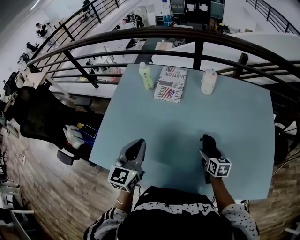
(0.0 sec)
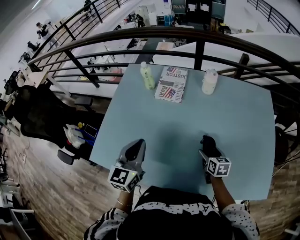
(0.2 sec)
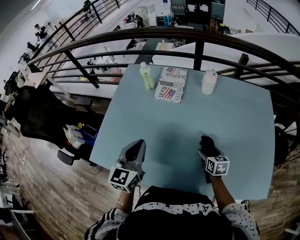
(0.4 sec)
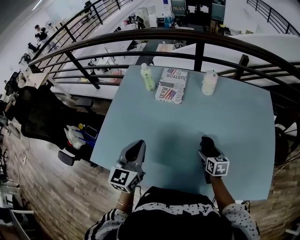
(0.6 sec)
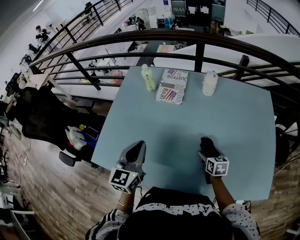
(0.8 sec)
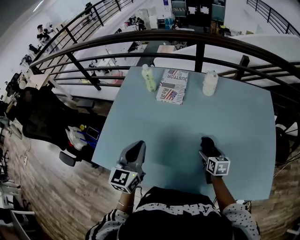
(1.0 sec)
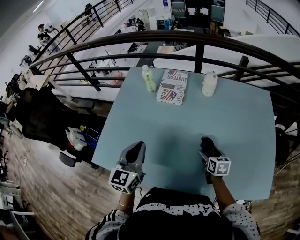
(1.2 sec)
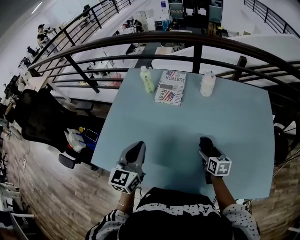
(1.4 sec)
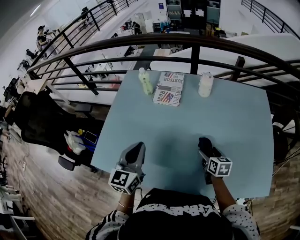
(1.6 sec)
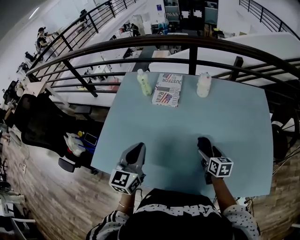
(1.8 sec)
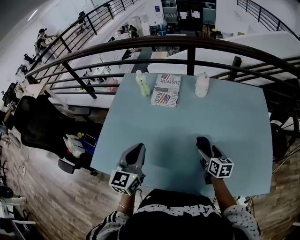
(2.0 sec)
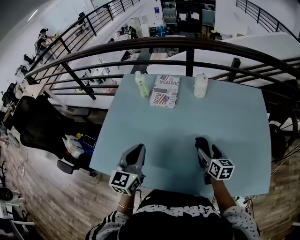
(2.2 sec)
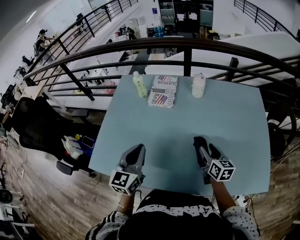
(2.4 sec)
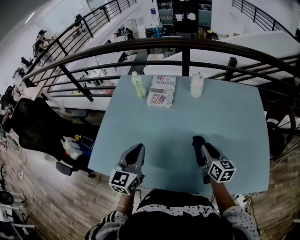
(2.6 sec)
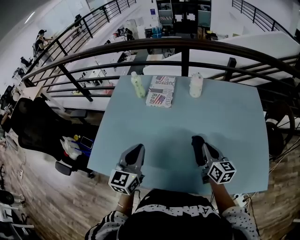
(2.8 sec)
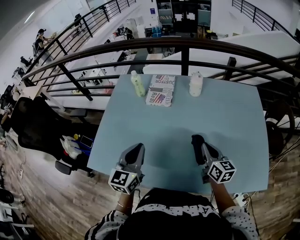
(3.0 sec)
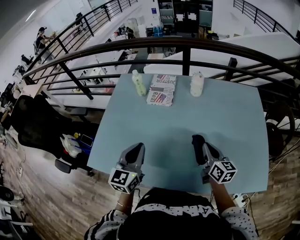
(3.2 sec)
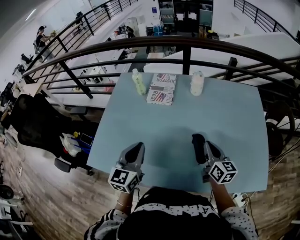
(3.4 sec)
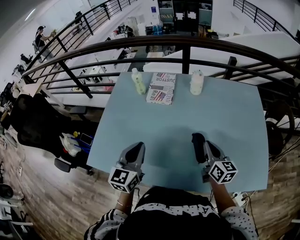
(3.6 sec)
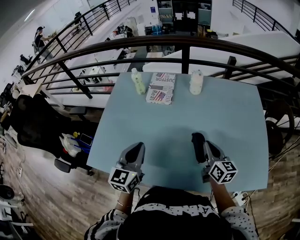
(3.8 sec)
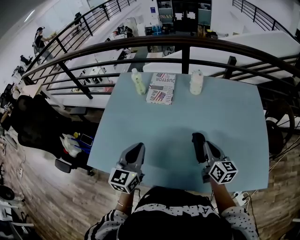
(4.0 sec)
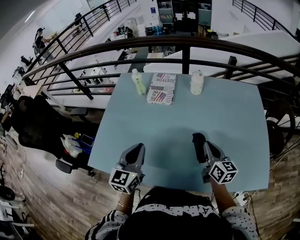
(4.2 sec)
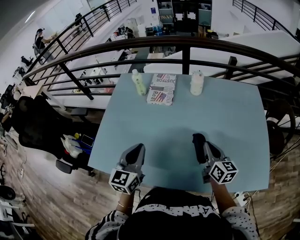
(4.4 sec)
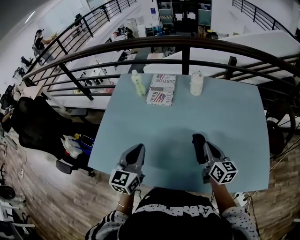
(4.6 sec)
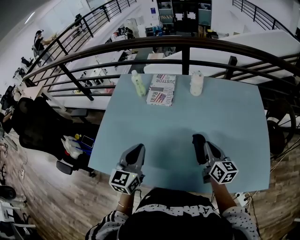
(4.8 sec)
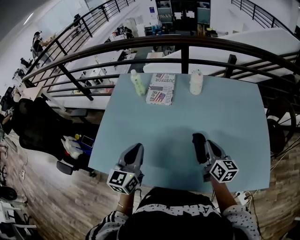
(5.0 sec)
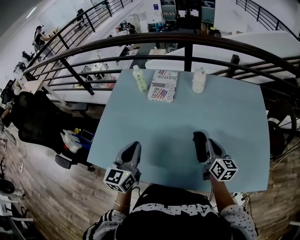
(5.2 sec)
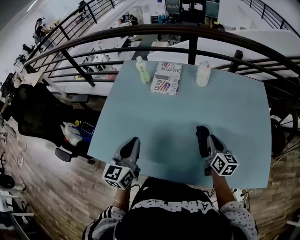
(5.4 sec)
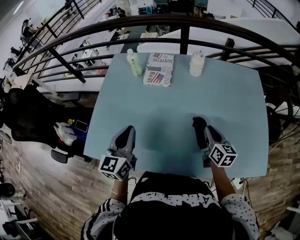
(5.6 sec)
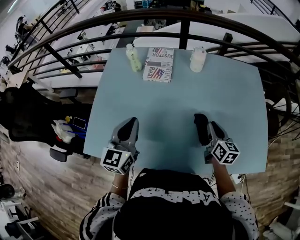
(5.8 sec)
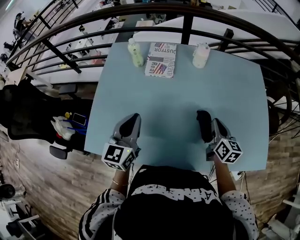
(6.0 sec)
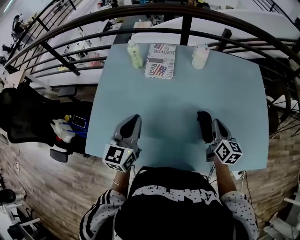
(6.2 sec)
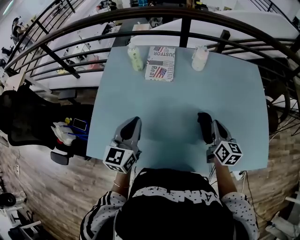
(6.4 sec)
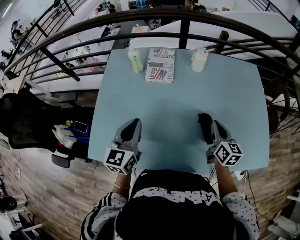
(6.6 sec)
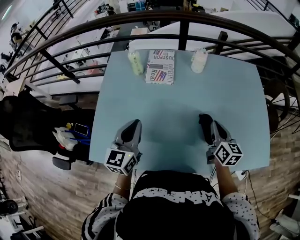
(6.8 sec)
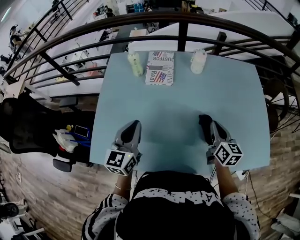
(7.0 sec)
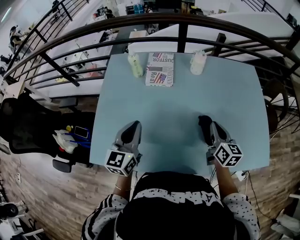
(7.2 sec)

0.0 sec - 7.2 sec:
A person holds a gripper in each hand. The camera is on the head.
0.0 sec - 1.4 sec: The grippers stay close to where they were, moving slightly.
1.4 sec - 2.8 sec: The right gripper shifts approximately 10 cm upward, swivels about 30 degrees, and closes up.
2.8 sec - 4.4 sec: Neither gripper changes place.
4.4 sec - 5.8 sec: The left gripper moves forward, roughly 5 cm.
5.8 sec - 7.2 sec: The right gripper ends up some 5 cm from where it was.

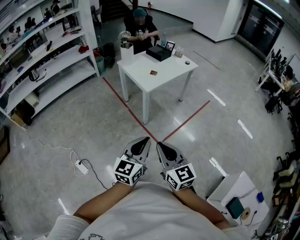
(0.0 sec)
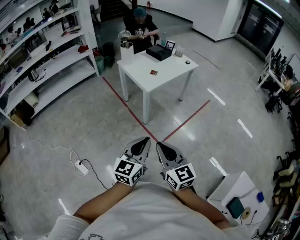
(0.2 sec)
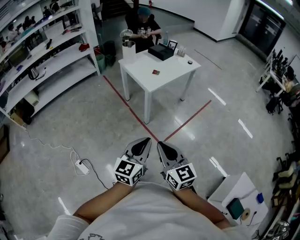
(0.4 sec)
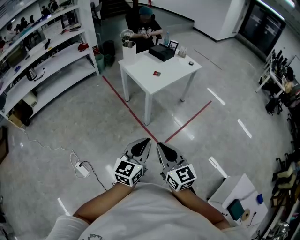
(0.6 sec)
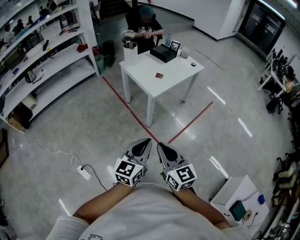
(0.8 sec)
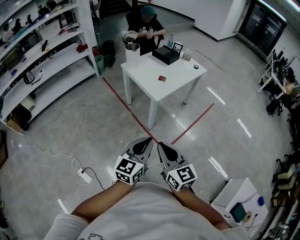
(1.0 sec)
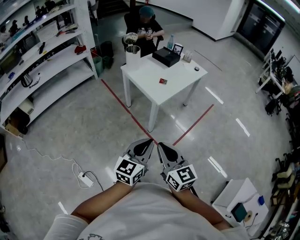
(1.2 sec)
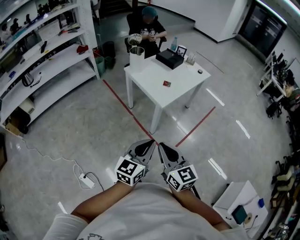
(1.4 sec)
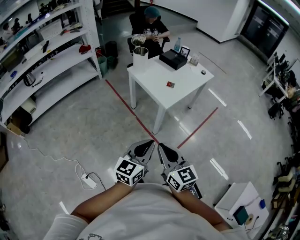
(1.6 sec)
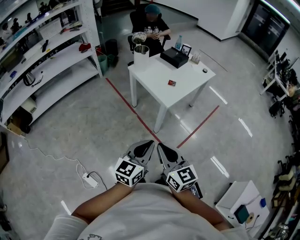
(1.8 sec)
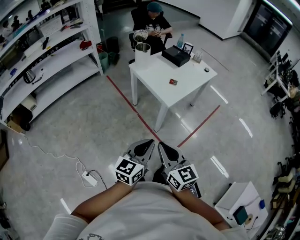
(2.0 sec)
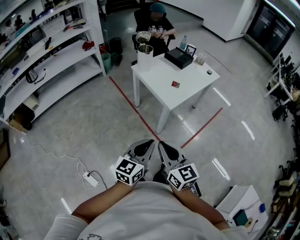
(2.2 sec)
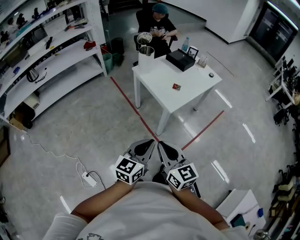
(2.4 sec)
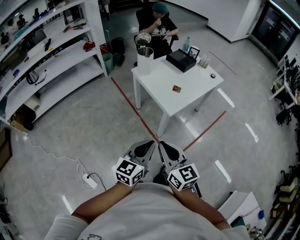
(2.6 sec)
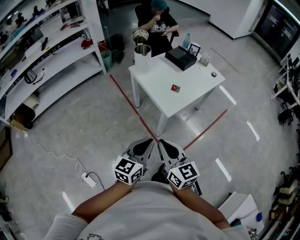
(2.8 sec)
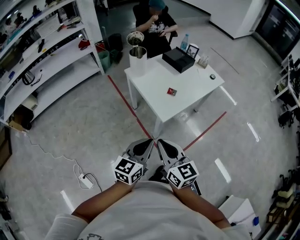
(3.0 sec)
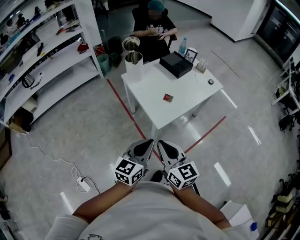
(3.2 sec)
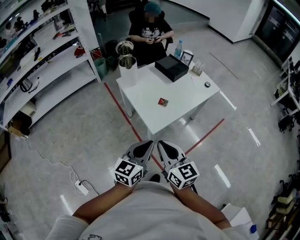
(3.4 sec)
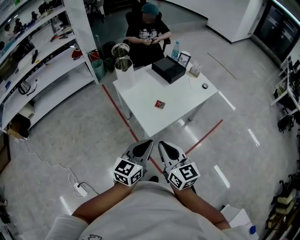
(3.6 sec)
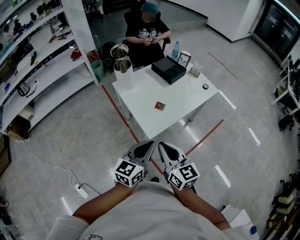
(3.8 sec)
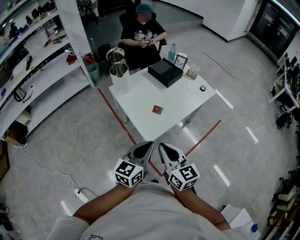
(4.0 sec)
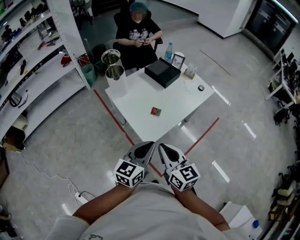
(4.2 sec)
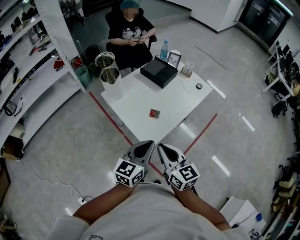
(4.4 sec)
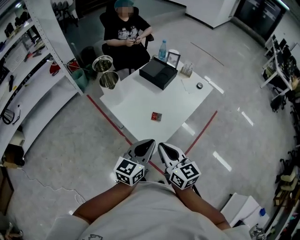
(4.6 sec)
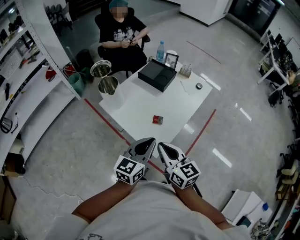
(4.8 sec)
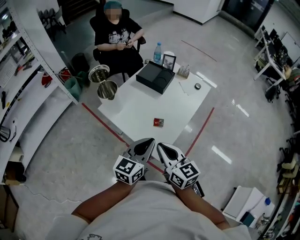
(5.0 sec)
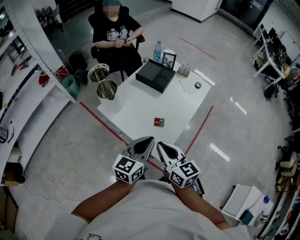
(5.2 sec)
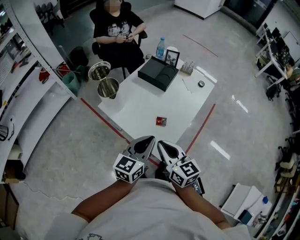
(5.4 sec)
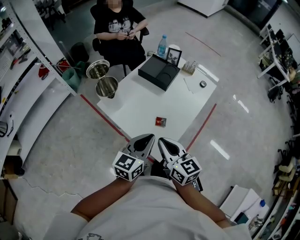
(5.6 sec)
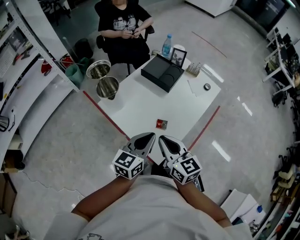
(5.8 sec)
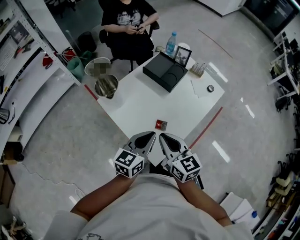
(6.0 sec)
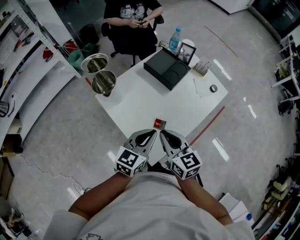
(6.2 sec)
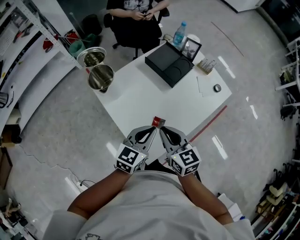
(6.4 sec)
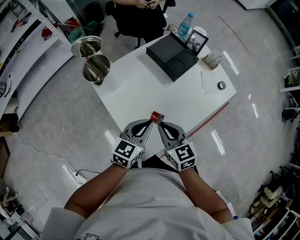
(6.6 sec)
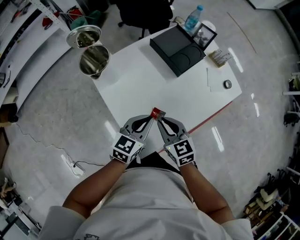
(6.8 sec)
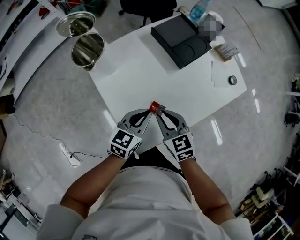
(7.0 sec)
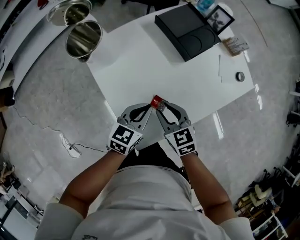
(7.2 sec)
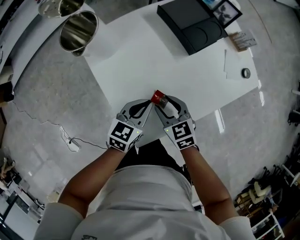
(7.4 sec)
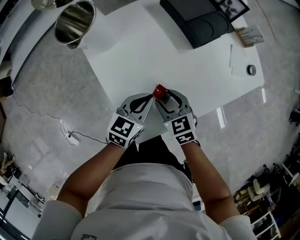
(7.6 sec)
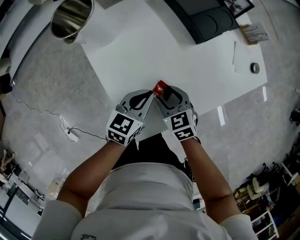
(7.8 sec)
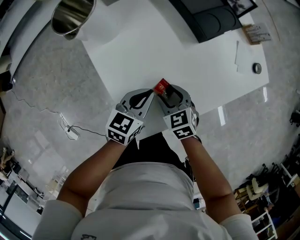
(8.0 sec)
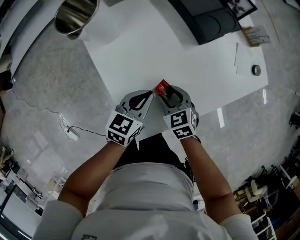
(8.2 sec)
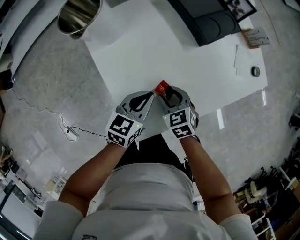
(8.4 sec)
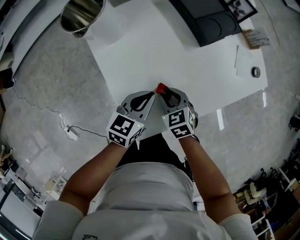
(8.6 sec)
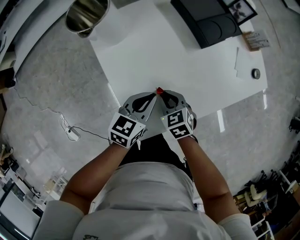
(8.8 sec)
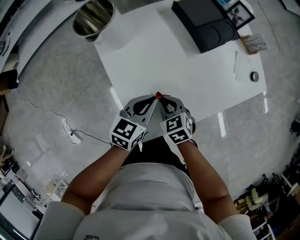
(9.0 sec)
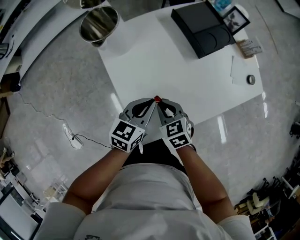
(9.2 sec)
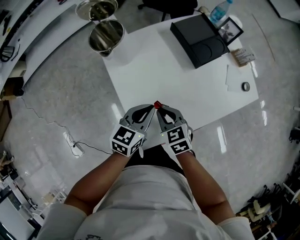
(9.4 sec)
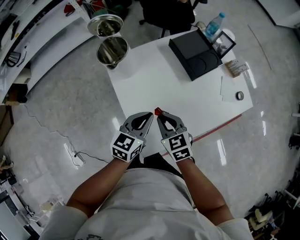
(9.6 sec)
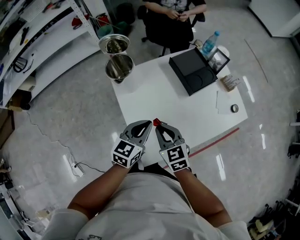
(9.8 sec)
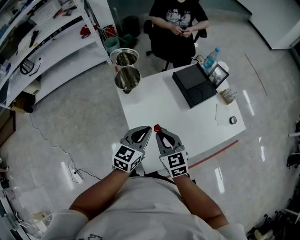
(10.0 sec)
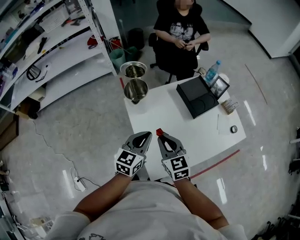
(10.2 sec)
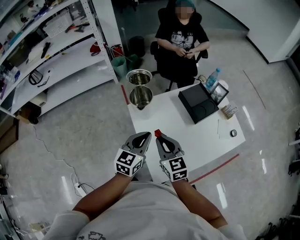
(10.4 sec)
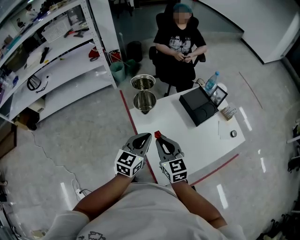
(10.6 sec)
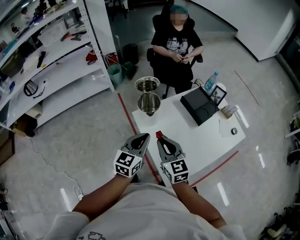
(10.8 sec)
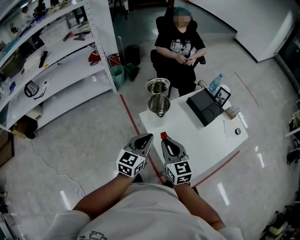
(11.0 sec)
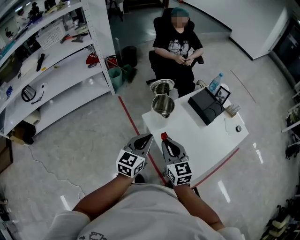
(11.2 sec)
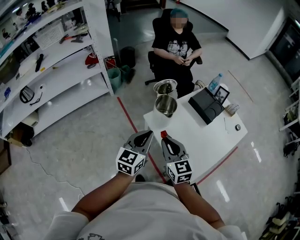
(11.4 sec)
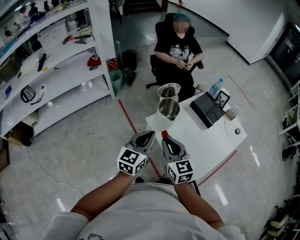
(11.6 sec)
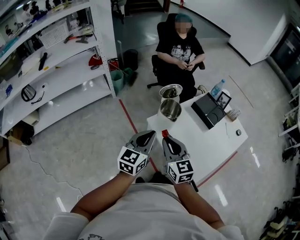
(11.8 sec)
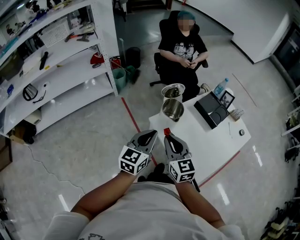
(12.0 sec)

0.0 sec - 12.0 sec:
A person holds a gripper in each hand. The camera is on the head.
0.0 sec - 1.6 sec: Both grippers move forward and to the left, about 25 cm.
1.6 sec - 3.0 sec: Both grippers travel together forward, about 20 cm.
3.0 sec - 4.4 sec: The grippers both shift forward and to the right by approximately 20 cm.
4.4 sec - 6.0 sec: Both grippers move forward, about 20 cm.
6.0 sec - 7.6 sec: The grippers both shift downward by roughly 25 cm. The right gripper swivels some 40 degrees, and opens up.
7.6 sec - 9.0 sec: The right gripper closes.
9.0 sec - 10.4 sec: The left gripper heads upward and to the left, covering approximately 20 cm, and swivels roughly 20 degrees. Meanwhile the right gripper moves upward, roughly 25 cm, and points its fingers approximately 30 degrees further upward.
10.4 sec - 12.0 sec: The grippers both shift to the left by approximately 20 cm.

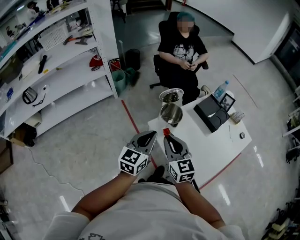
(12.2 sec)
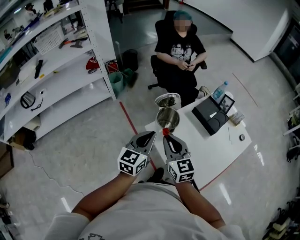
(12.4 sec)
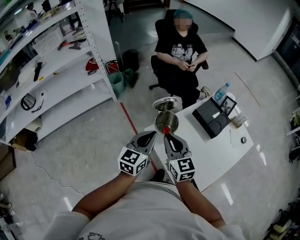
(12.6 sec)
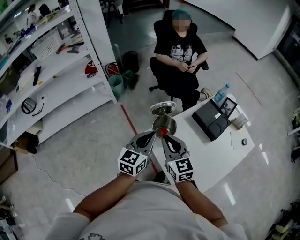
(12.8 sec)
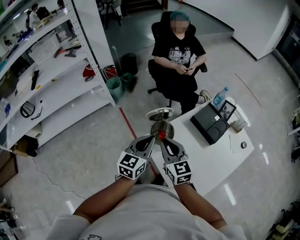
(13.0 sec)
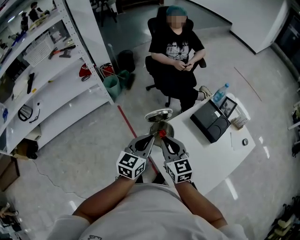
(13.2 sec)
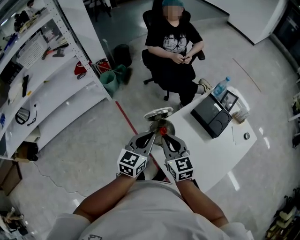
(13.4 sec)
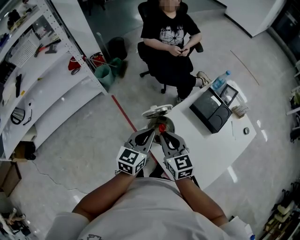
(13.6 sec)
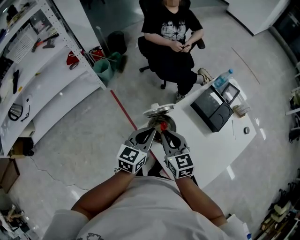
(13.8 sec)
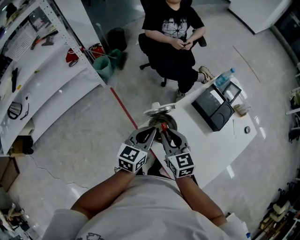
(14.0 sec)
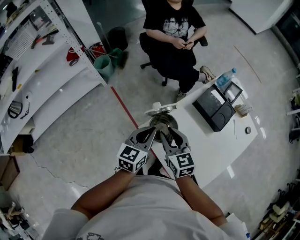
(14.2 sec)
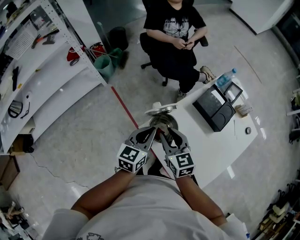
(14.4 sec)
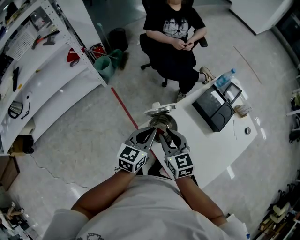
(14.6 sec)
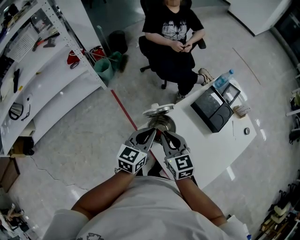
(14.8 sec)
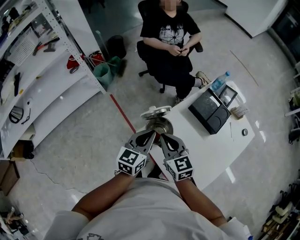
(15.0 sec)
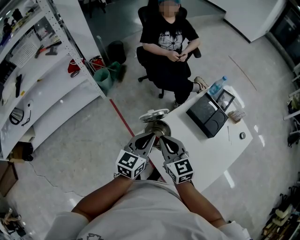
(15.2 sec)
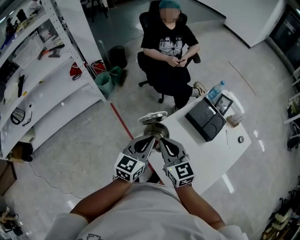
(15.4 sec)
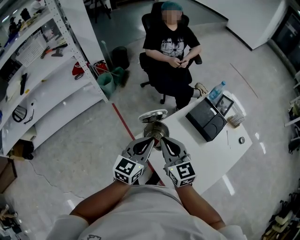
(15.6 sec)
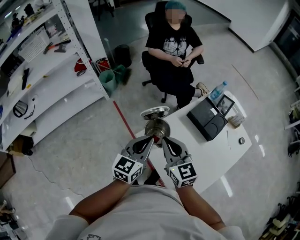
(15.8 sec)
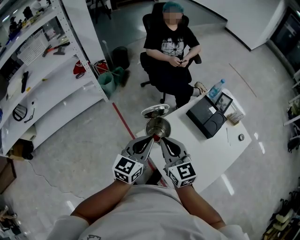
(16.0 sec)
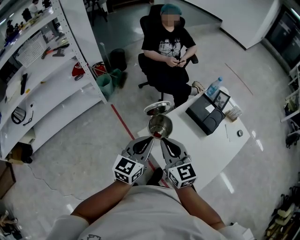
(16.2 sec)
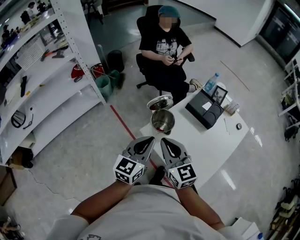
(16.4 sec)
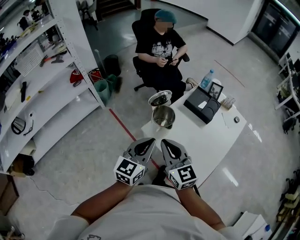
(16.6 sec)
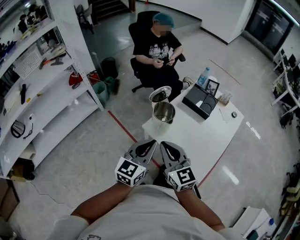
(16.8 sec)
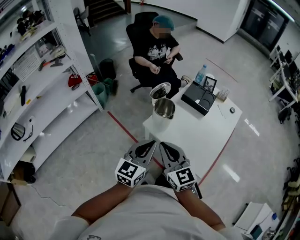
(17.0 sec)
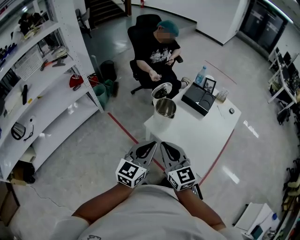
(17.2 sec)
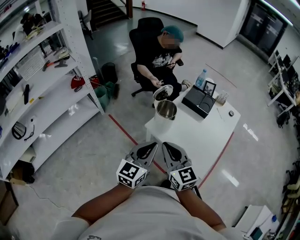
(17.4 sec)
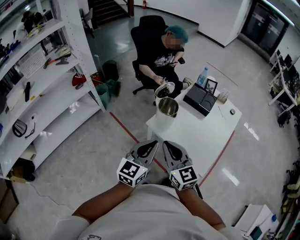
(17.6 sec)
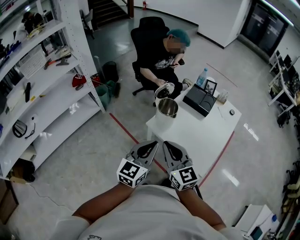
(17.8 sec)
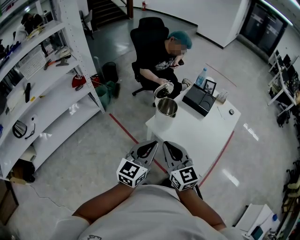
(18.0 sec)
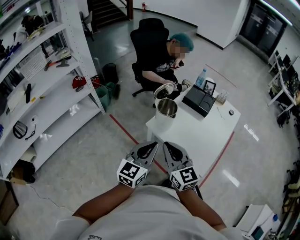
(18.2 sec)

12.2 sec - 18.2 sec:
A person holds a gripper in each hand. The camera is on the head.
12.2 sec - 13.8 sec: The grippers both shift forward and downward by approximately 15 cm.
13.8 sec - 15.2 sec: The grippers stay close to where they were, moving slightly.
15.2 sec - 16.6 sec: The grippers both shift backward and upward by some 15 cm.
16.6 sec - 18.2 sec: The two grippers go approximately 10 cm backward.
